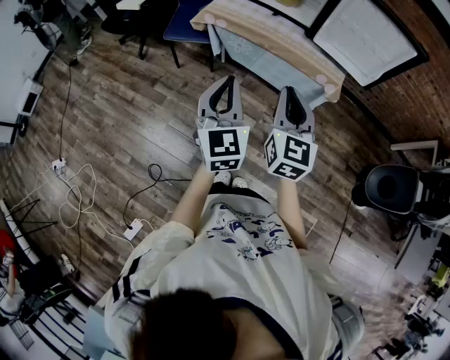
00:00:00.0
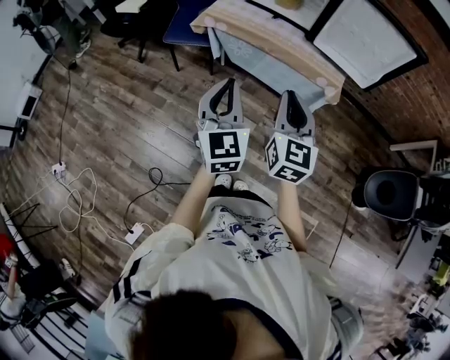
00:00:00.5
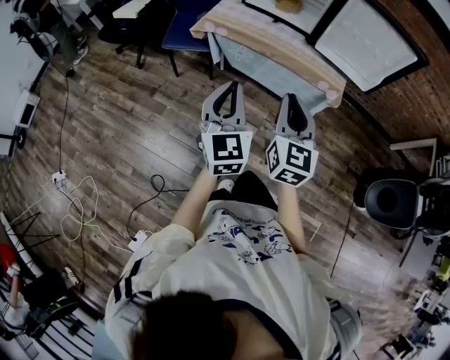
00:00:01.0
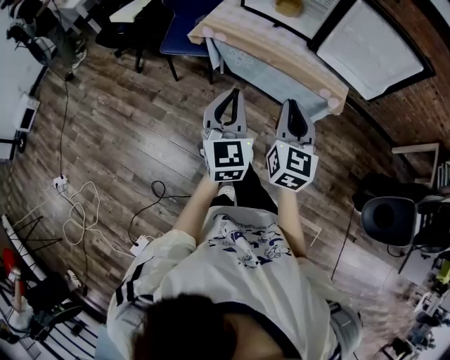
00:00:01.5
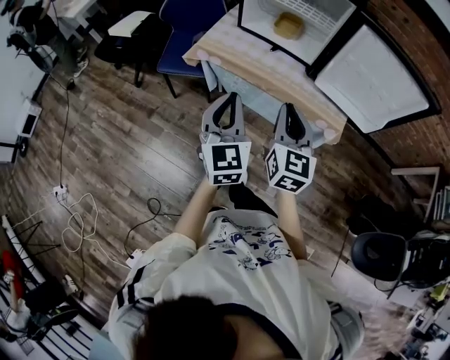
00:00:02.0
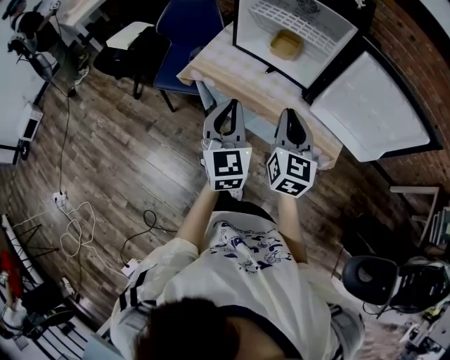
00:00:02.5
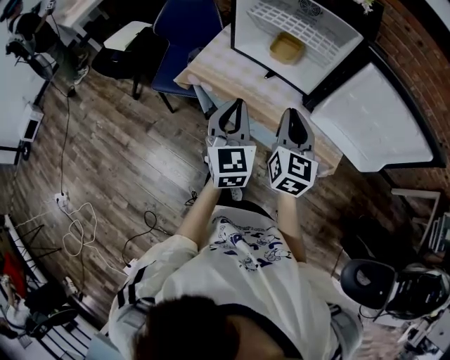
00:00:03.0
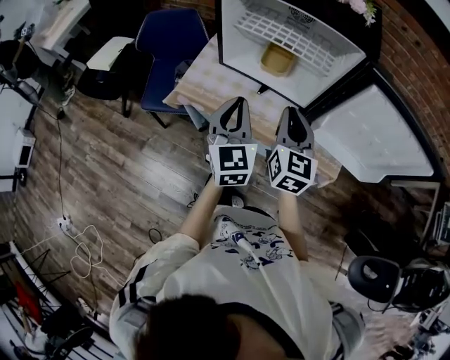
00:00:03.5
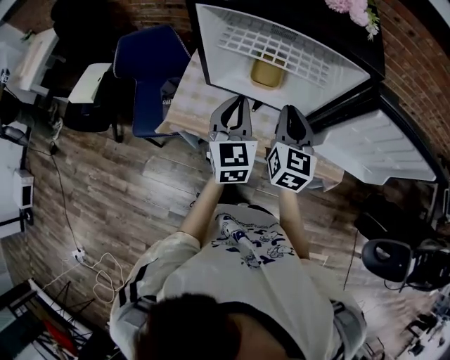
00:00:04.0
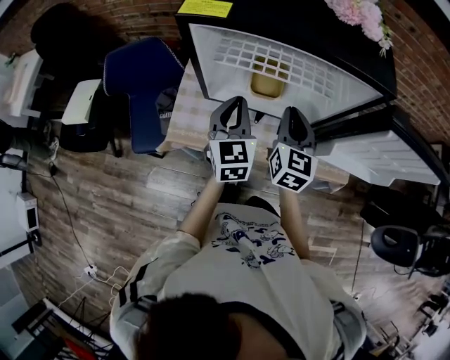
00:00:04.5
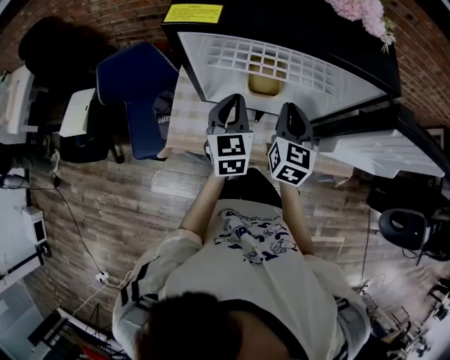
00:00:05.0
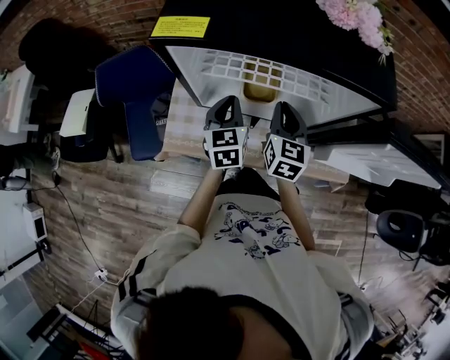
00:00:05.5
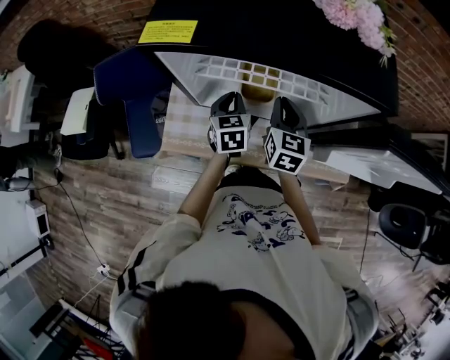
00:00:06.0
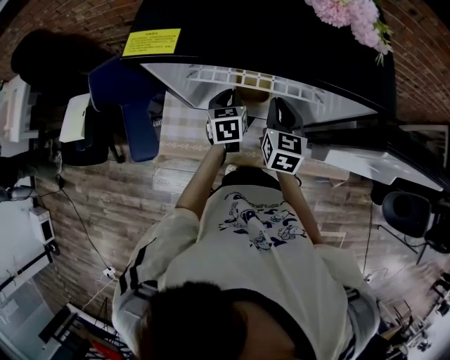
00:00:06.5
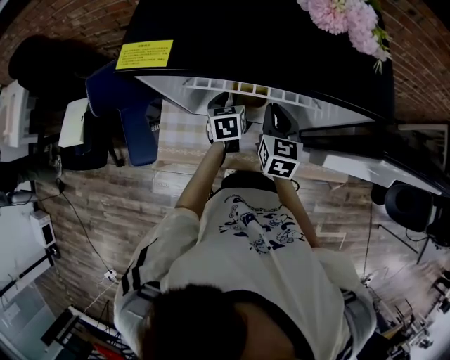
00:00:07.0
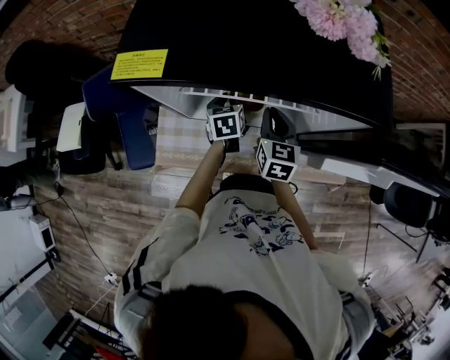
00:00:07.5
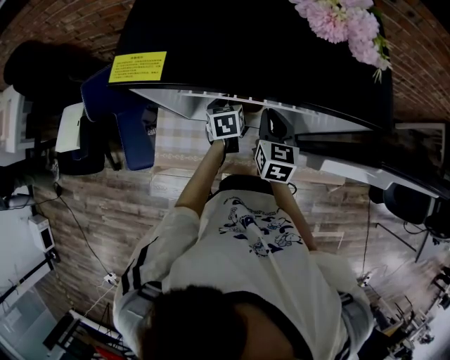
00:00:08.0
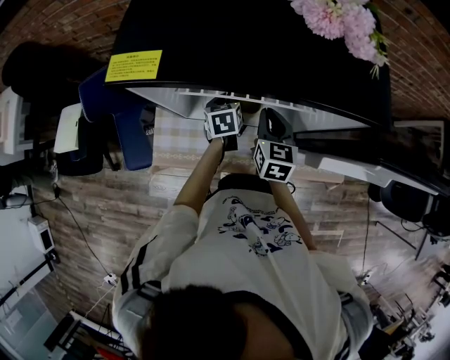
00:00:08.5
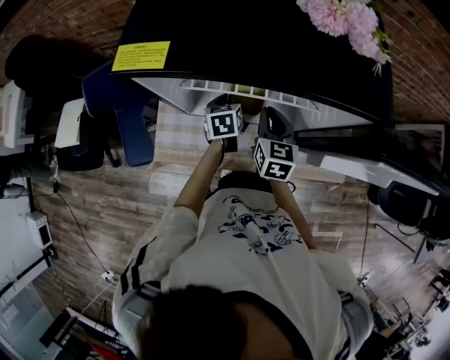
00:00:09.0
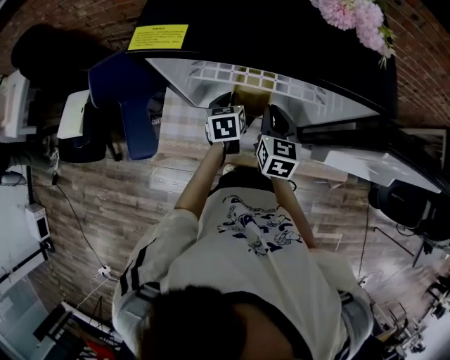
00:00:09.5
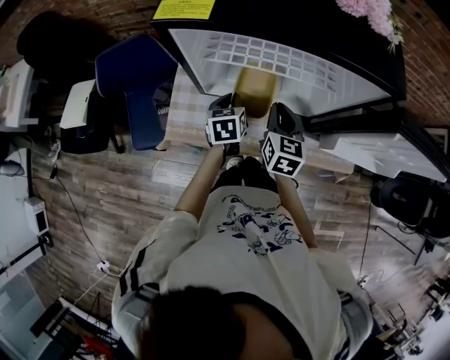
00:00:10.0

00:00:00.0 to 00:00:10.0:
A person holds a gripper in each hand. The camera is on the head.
00:00:00.0 to 00:00:02.0: The grippers both shift forward by approximately 20 cm.
00:00:02.0 to 00:00:04.0: Both grippers move forward, approximately 40 cm.
00:00:04.0 to 00:00:06.0: The two grippers go approximately 20 cm forward and downward. The left gripper rotates about 20 degrees.
00:00:06.0 to 00:00:08.0: The left gripper heads downward and forward, covering roughly 10 cm.
00:00:08.0 to 00:00:10.0: The two grippers go approximately 10 cm backward.

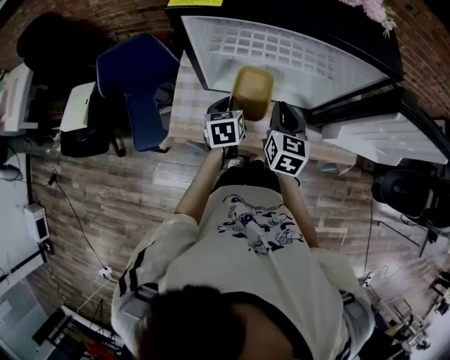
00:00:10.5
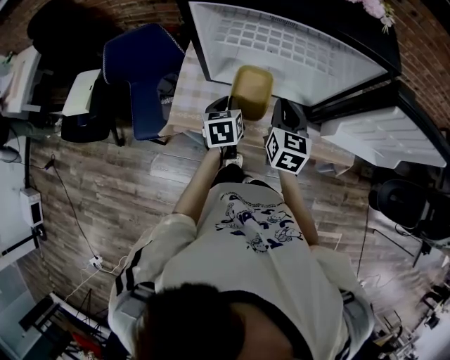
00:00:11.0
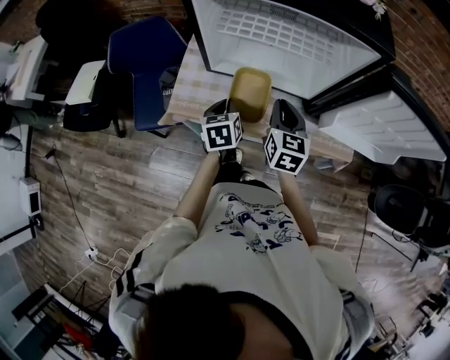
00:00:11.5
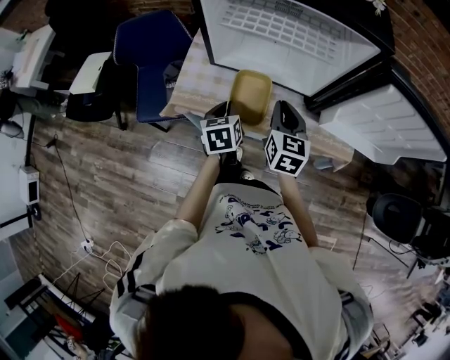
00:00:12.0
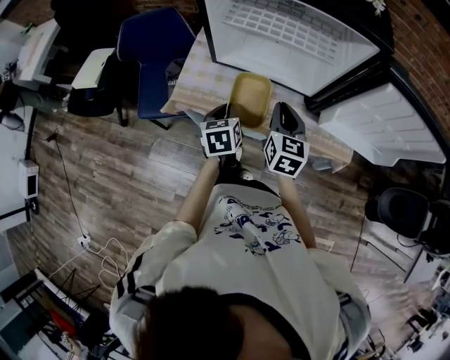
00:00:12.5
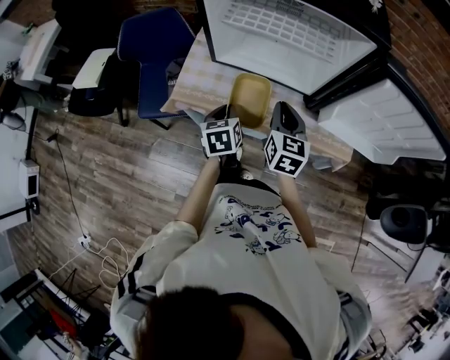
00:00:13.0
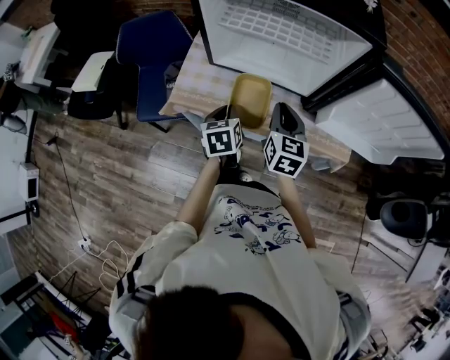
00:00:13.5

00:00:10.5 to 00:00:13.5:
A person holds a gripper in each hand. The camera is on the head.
00:00:10.5 to 00:00:12.0: The left gripper moves backward, about 10 cm; the right gripper goes roughly 10 cm backward.
00:00:12.0 to 00:00:13.5: There are only small adjustments of the grippers.

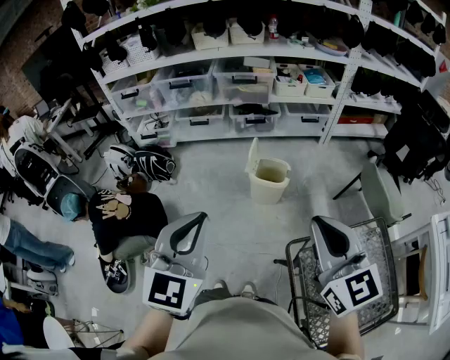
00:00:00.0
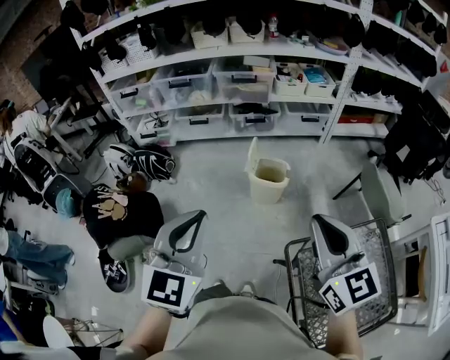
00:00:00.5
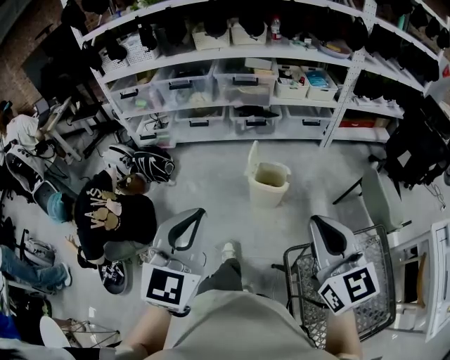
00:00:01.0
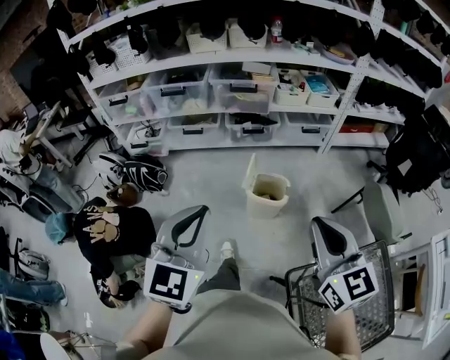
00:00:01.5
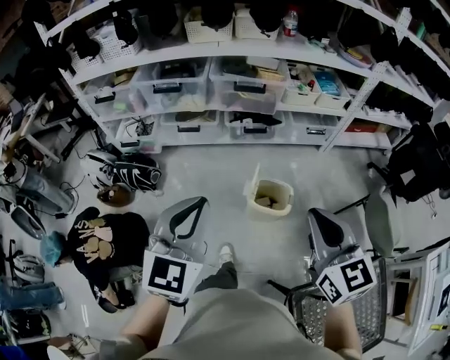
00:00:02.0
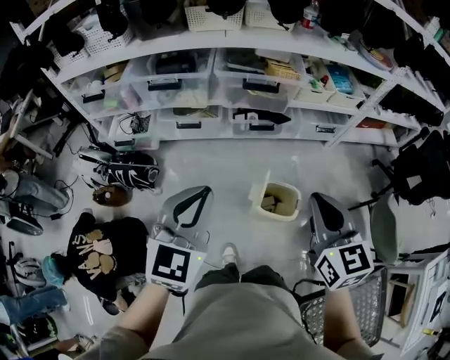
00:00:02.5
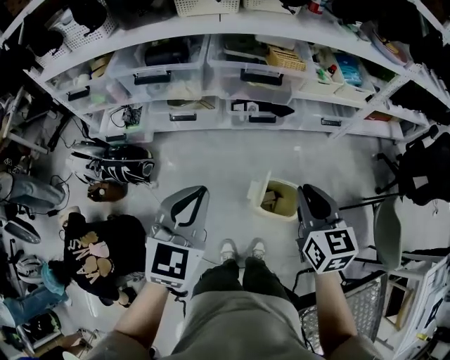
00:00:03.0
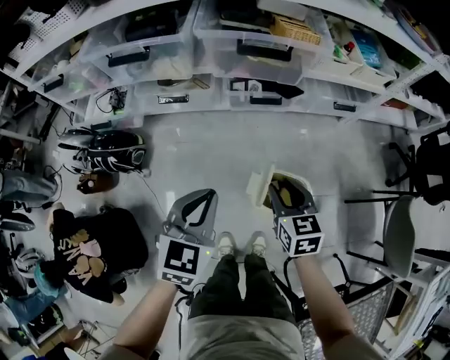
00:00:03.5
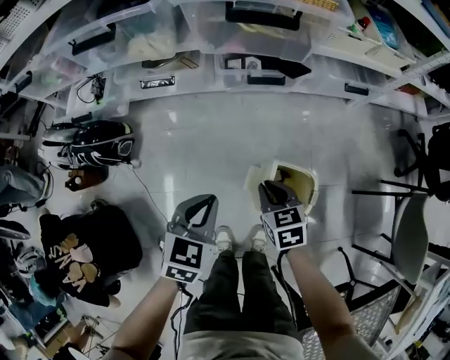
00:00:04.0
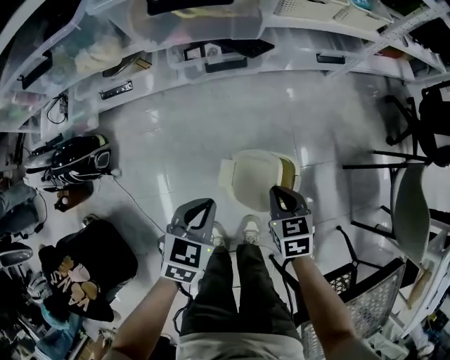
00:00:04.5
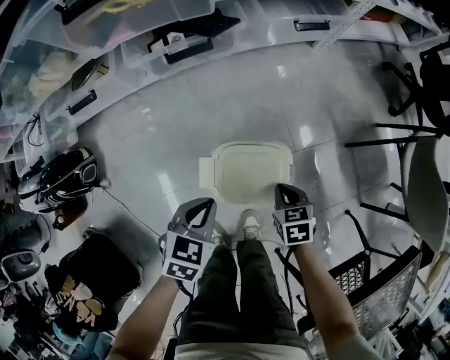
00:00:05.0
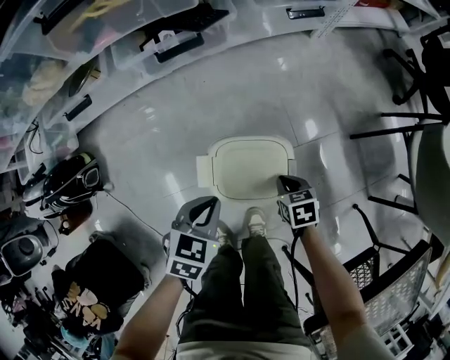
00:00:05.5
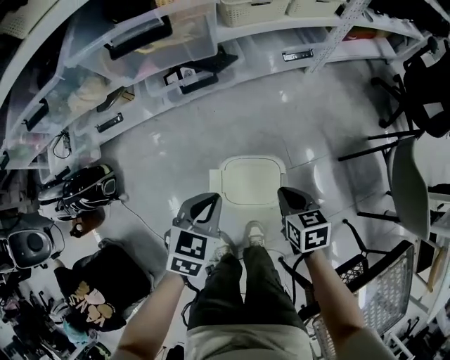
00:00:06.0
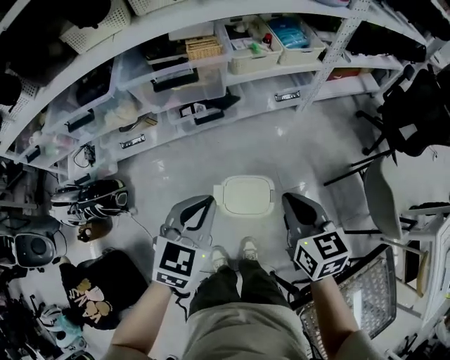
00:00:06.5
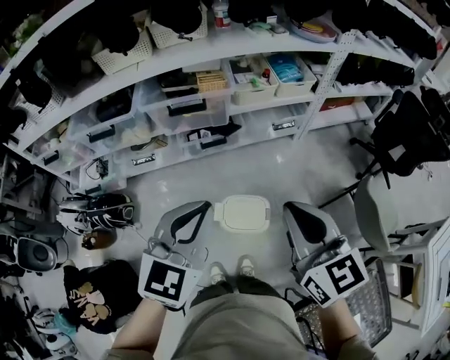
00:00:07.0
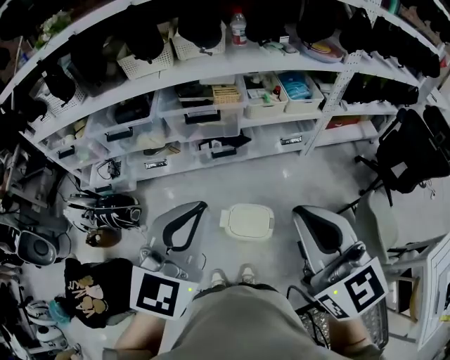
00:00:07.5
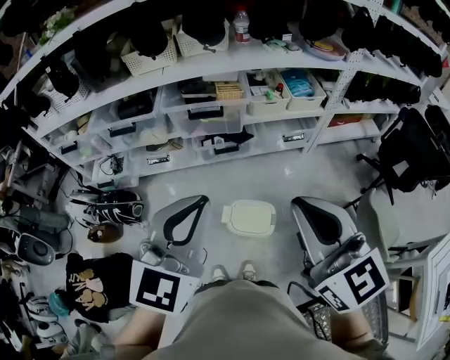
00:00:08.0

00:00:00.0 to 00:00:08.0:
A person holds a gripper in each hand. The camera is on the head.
00:00:00.0 to 00:00:02.0: Both grippers travel together forward, roughly 30 cm.
00:00:02.0 to 00:00:04.0: Both grippers move downward and forward, approximately 60 cm. The right gripper angles its fingers downward, by approximately 40 degrees, and opens and closes again; the left gripper swivels about 30 degrees.
00:00:04.0 to 00:00:06.0: The grippers both shift to the right by approximately 20 cm. The right gripper turns by about 20 degrees. Meanwhile the left gripper goes downward and returns, some 15 cm each way.
00:00:06.0 to 00:00:08.0: The two grippers go approximately 50 cm upward. The left gripper angles its fingers upward, by some 30 degrees. The right gripper tilts its fingers approximately 50 degrees upward.

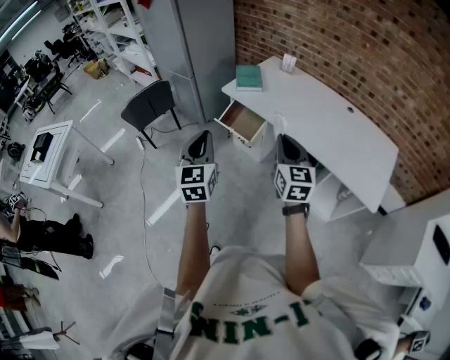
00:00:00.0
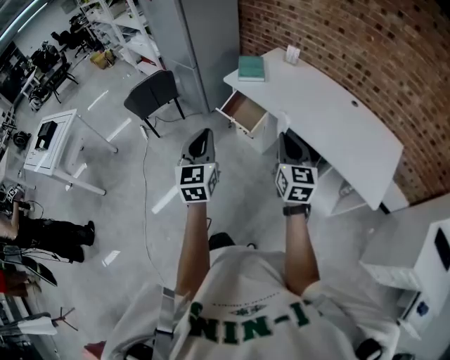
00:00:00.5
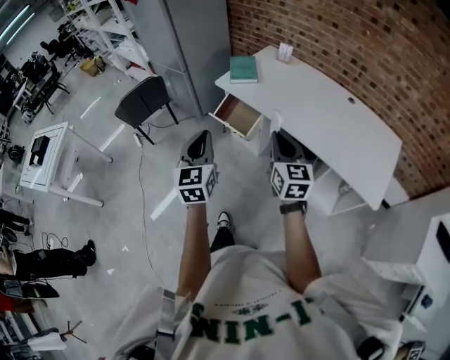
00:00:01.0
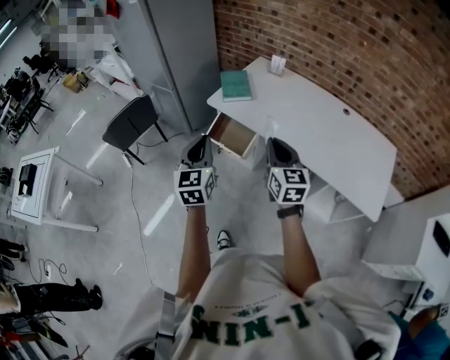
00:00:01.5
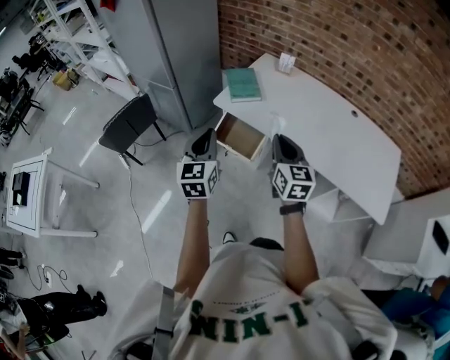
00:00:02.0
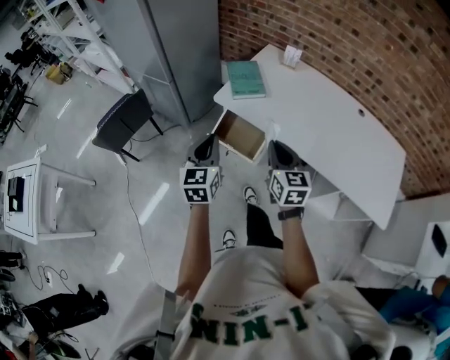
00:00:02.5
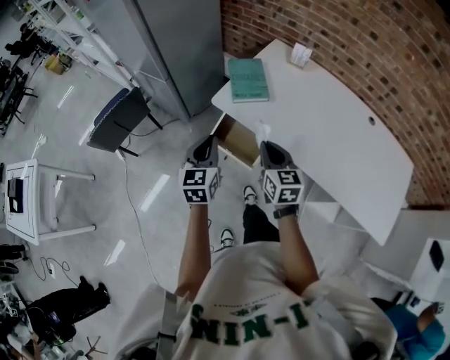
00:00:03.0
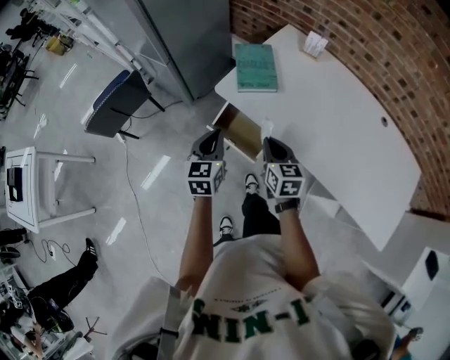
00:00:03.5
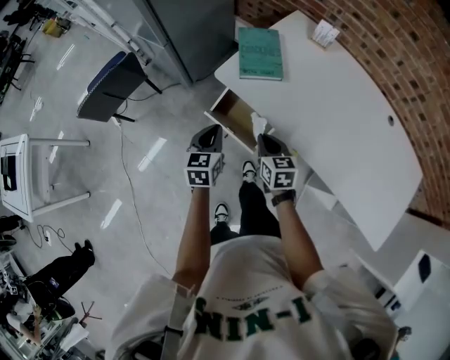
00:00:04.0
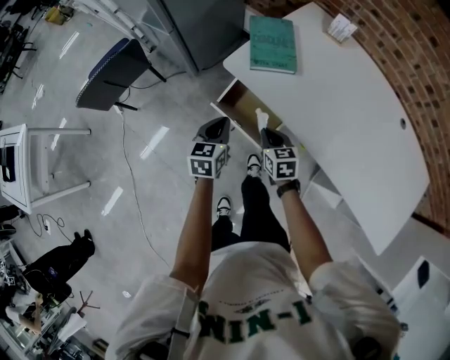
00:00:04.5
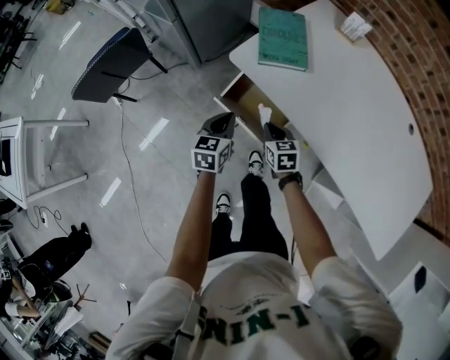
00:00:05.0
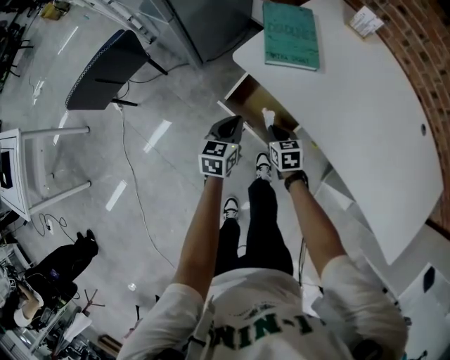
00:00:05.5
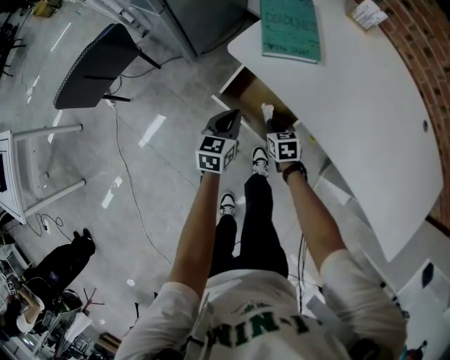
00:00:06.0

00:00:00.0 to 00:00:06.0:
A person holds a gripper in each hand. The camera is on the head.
00:00:00.0 to 00:00:02.0: The grippers both shift forward by roughly 25 cm.
00:00:02.0 to 00:00:04.0: The grippers both shift downward and forward by about 30 cm. The left gripper rotates roughly 20 degrees, while the right gripper changes its angle by about 30 degrees.
00:00:04.0 to 00:00:06.0: Both grippers travel together downward, some 20 cm.
